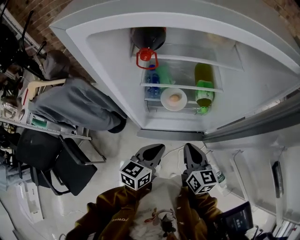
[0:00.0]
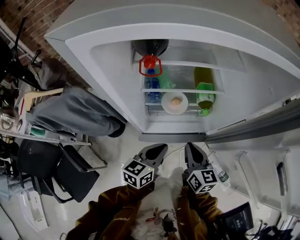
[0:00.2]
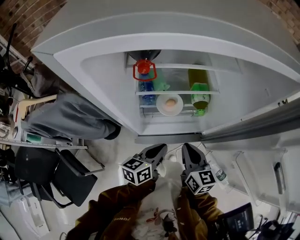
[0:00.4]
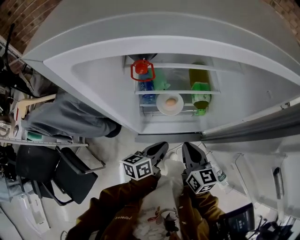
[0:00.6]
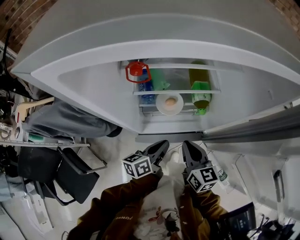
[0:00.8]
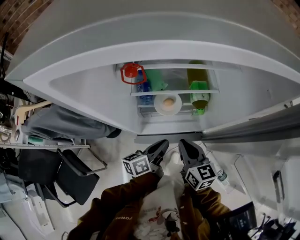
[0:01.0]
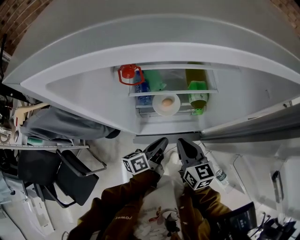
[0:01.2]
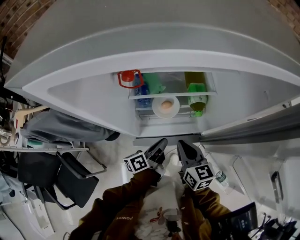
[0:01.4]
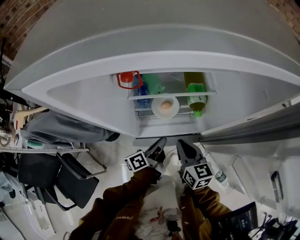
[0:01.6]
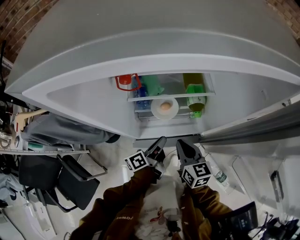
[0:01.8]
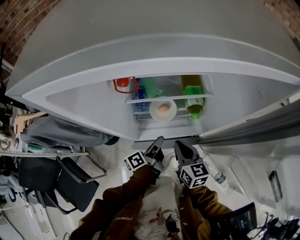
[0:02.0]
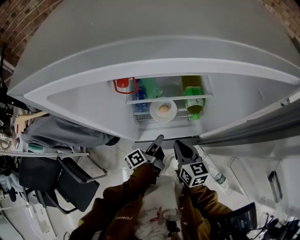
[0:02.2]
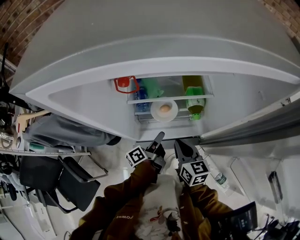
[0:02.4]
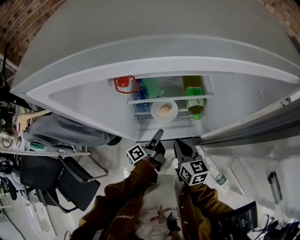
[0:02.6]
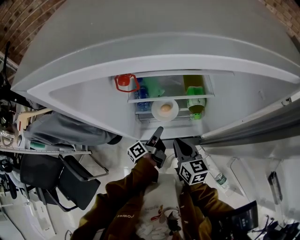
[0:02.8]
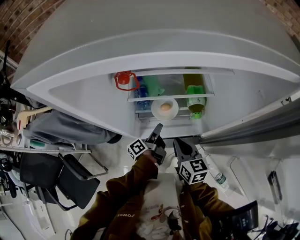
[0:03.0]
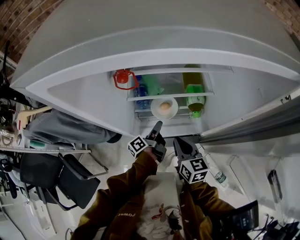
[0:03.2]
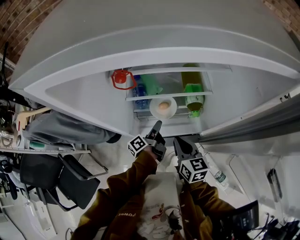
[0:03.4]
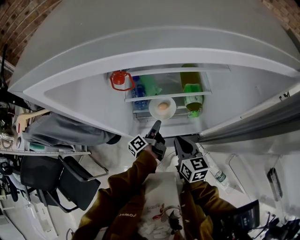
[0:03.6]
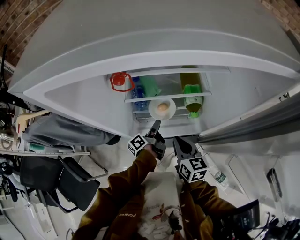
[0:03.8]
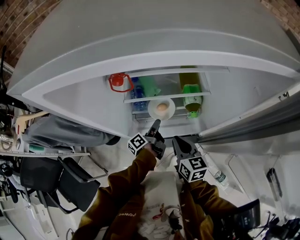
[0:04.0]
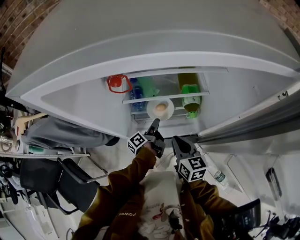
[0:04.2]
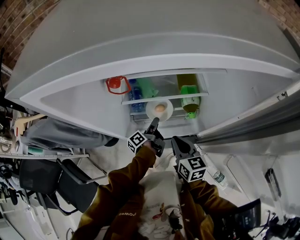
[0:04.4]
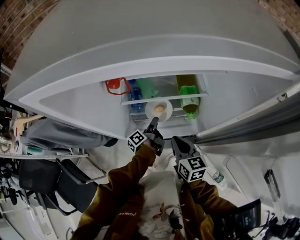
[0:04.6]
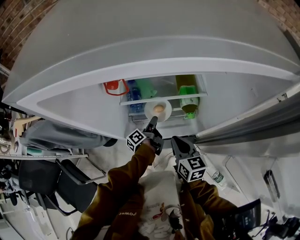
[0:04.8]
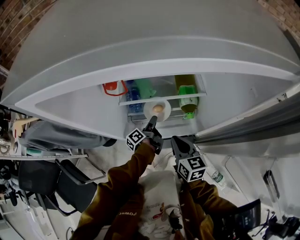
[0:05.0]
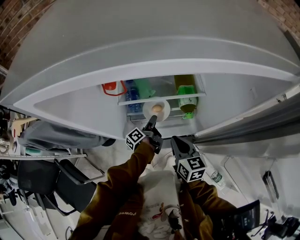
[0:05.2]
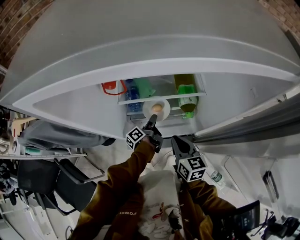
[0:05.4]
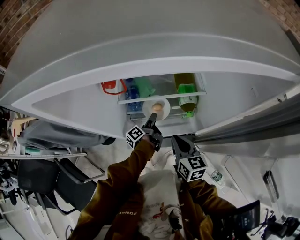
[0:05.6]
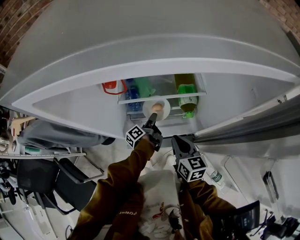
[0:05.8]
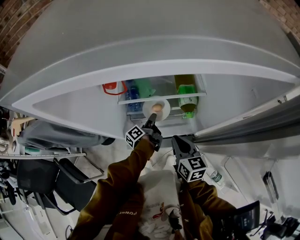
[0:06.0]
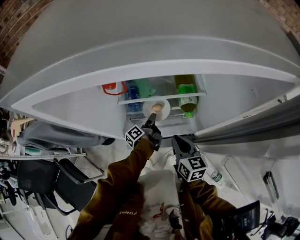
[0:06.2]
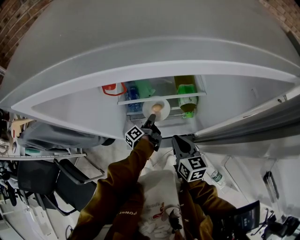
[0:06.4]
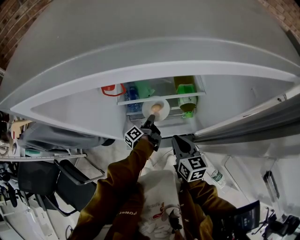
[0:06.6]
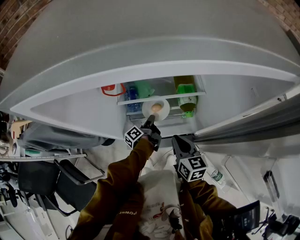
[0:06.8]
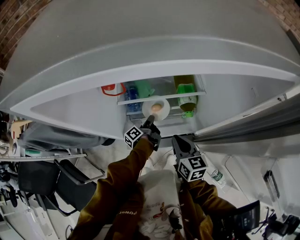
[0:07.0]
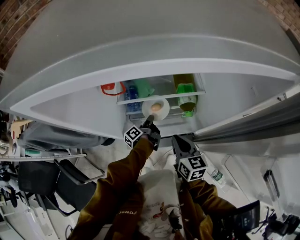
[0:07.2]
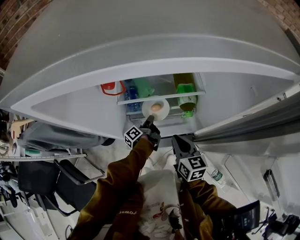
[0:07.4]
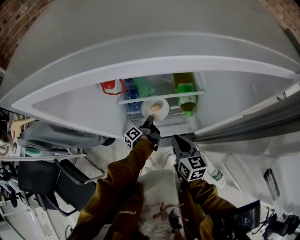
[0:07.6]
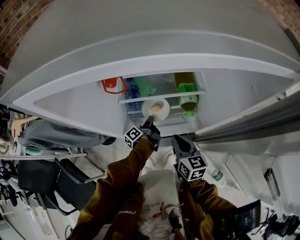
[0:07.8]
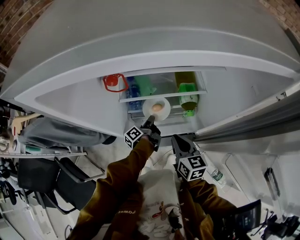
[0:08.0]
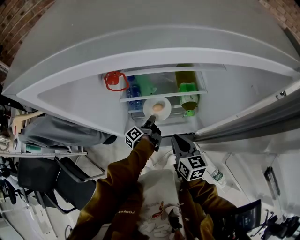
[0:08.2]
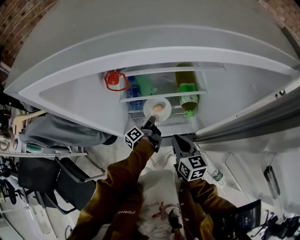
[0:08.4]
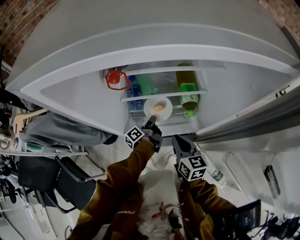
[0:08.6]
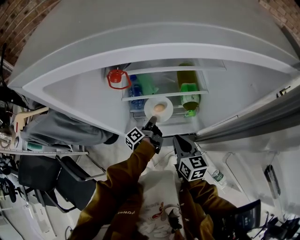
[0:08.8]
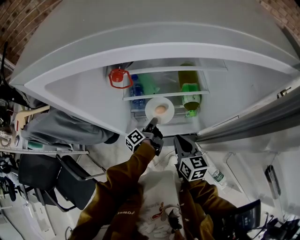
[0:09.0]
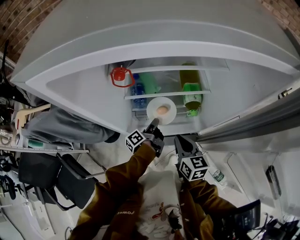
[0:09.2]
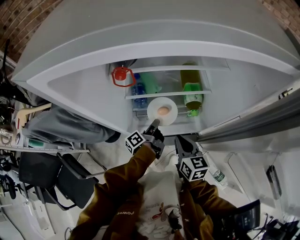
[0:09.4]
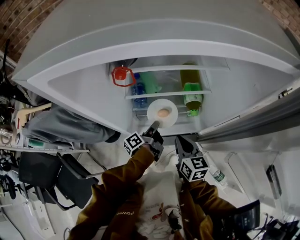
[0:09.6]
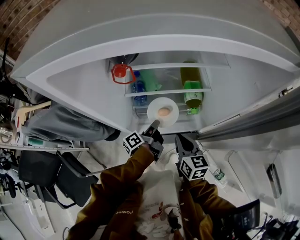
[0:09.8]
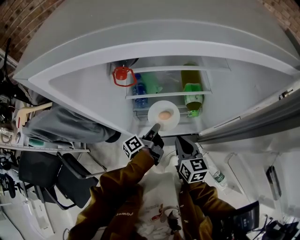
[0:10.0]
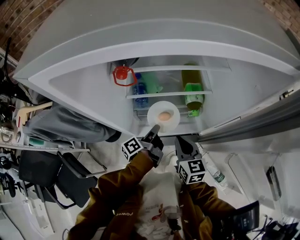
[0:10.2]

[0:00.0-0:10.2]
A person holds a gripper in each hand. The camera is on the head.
0:00.0 to 0:01.4: The right gripper moves about 5 cm.

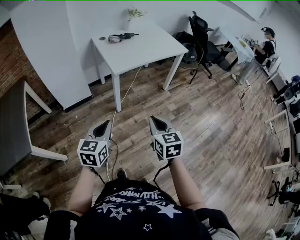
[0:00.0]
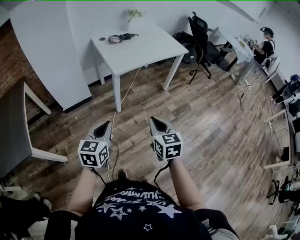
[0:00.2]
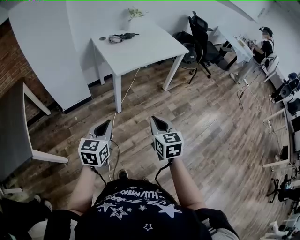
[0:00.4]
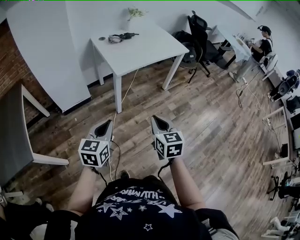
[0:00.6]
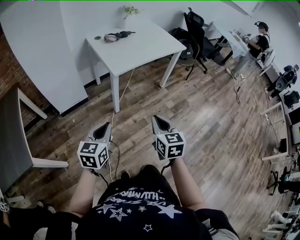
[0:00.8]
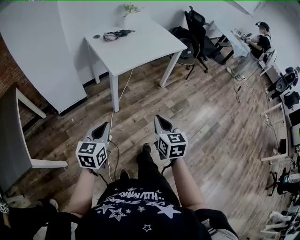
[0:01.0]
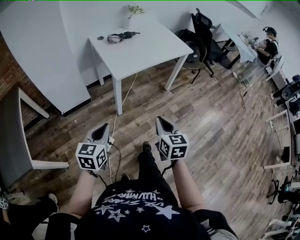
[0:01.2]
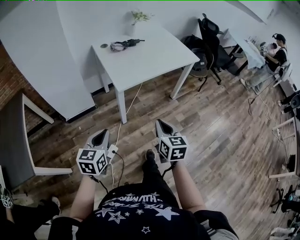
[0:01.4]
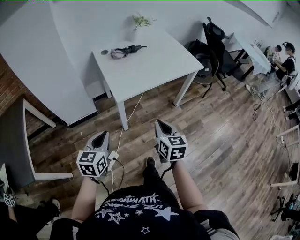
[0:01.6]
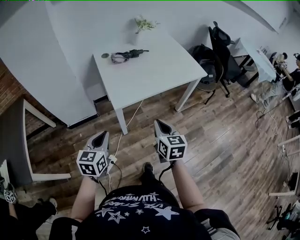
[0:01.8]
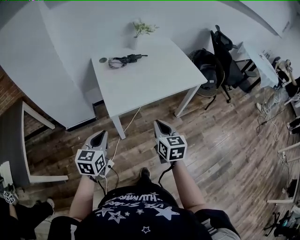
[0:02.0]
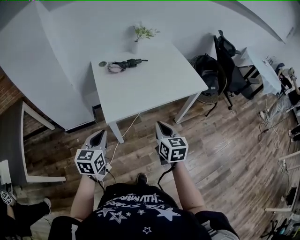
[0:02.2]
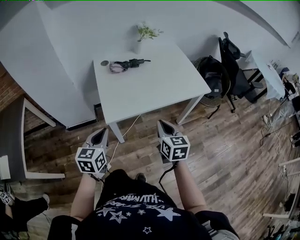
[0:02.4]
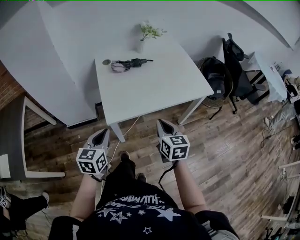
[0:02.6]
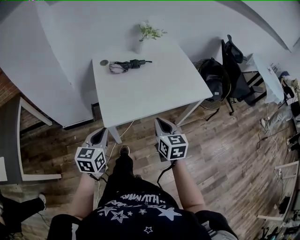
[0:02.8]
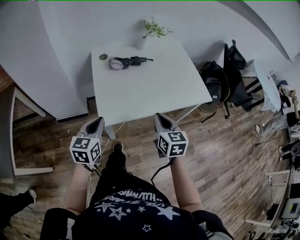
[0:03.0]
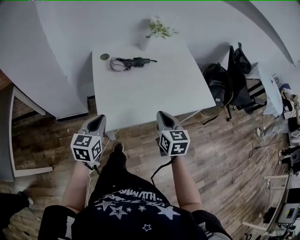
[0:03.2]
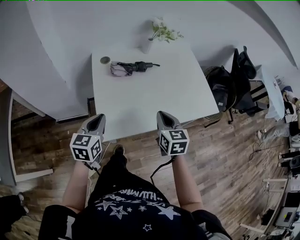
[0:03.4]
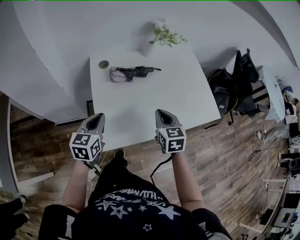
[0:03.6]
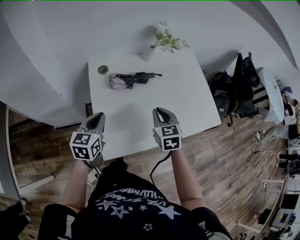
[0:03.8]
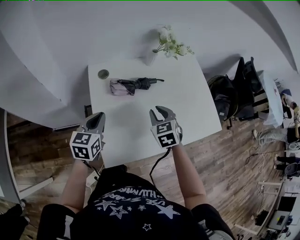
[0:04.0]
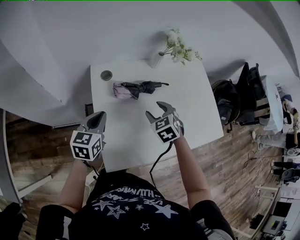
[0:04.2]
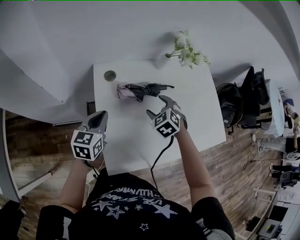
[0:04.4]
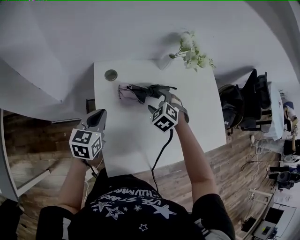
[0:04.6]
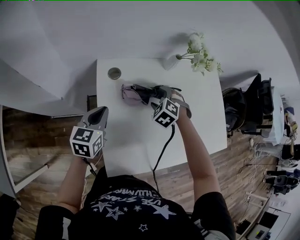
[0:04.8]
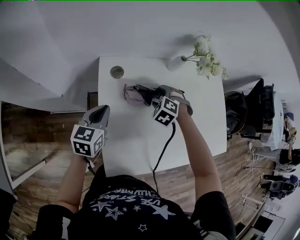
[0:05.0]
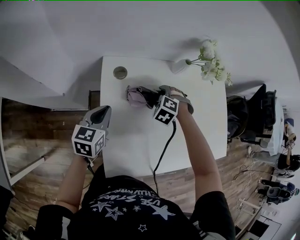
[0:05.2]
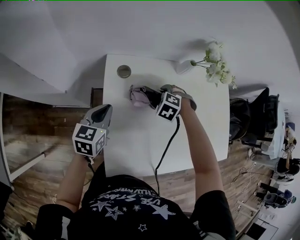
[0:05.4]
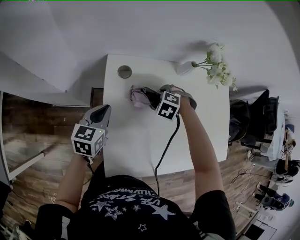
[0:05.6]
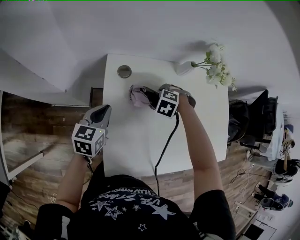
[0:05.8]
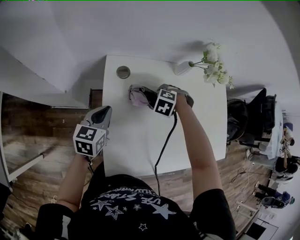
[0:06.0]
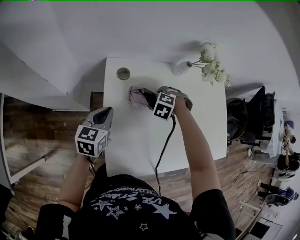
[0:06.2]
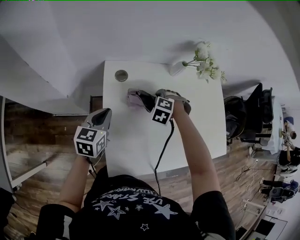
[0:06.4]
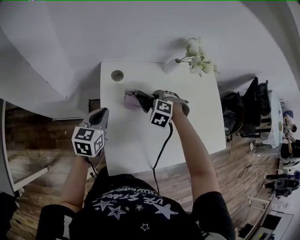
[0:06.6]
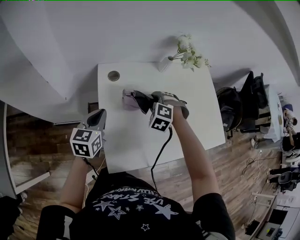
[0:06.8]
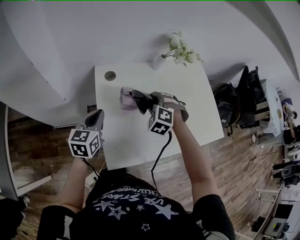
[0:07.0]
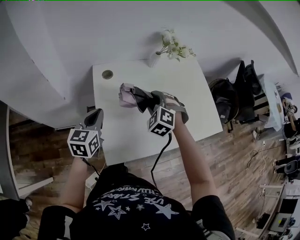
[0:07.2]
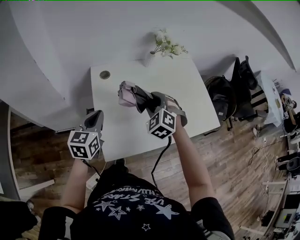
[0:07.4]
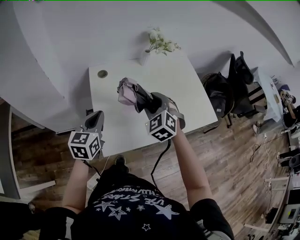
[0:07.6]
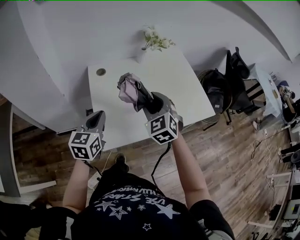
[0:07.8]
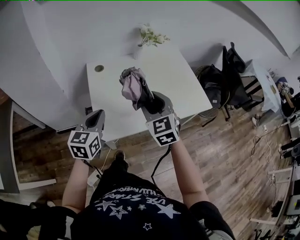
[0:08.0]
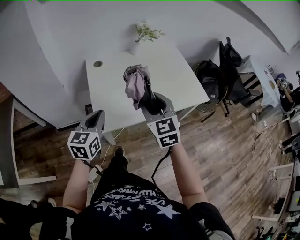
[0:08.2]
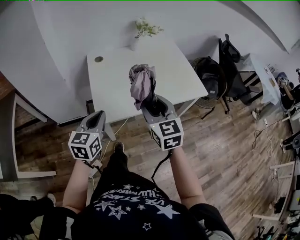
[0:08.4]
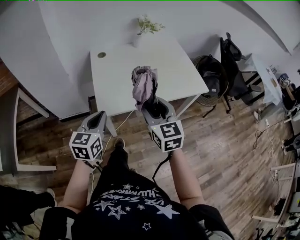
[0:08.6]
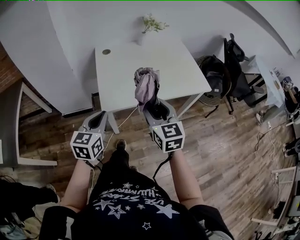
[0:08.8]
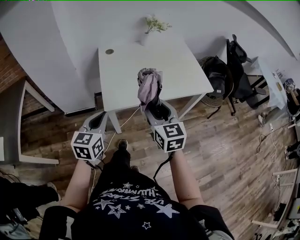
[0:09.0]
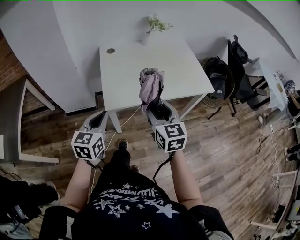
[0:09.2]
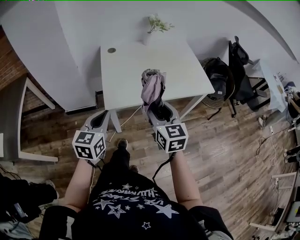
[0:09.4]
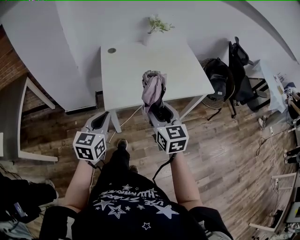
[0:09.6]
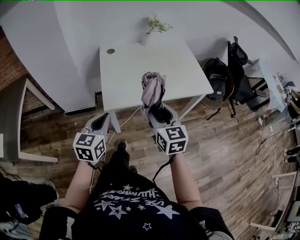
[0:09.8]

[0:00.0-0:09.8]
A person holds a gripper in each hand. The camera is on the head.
0:00.0 to 0:01.4: The two grippers go some 15 cm forward.
0:01.4 to 0:02.8: The right gripper is displaced forward by about 30 cm. Meanwhile the left gripper shifts approximately 25 cm forward and to the right.
0:02.8 to 0:04.2: Both grippers travel together forward, approximately 35 cm. The right gripper rotates some 40 degrees, and opens up.
0:04.2 to 0:05.6: The left gripper shifts by approximately 10 cm. The right gripper changes place by some 15 cm, and rotates around the line of its fingers by approximately 40 degrees, counterclockwise from behind.
0:05.6 to 0:07.0: The right gripper heads upward, covering approximately 10 cm, and swivels about 30 degrees, while the left gripper moves some 10 cm.
0:07.0 to 0:08.4: The right gripper heads backward and upward, covering roughly 35 cm, and rotates around the line of its fingers by about 60 degrees, clockwise from behind. The left gripper shifts roughly 30 cm backward and to the right.
0:08.4 to 0:09.8: Both grippers travel together backward, approximately 10 cm.

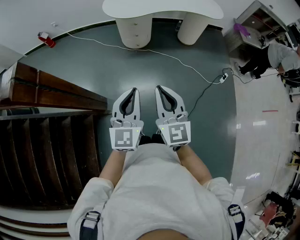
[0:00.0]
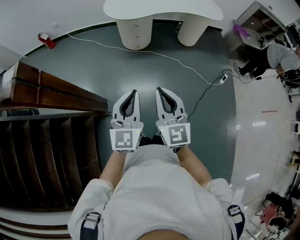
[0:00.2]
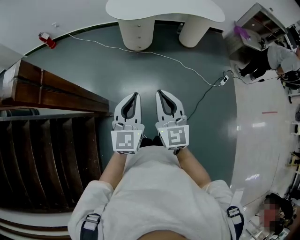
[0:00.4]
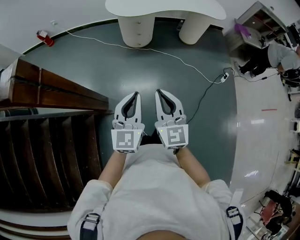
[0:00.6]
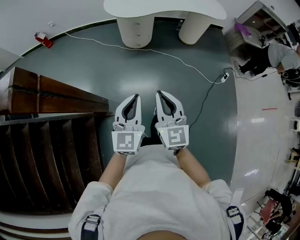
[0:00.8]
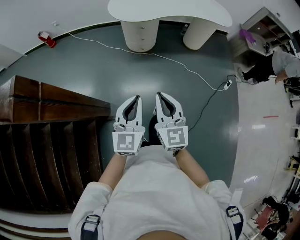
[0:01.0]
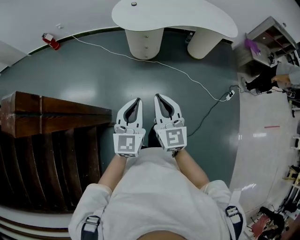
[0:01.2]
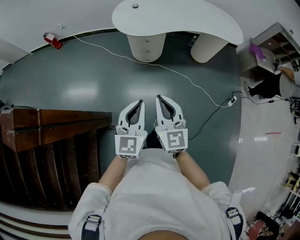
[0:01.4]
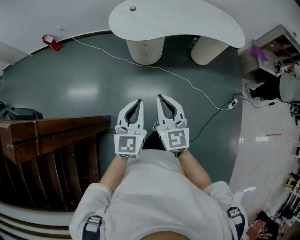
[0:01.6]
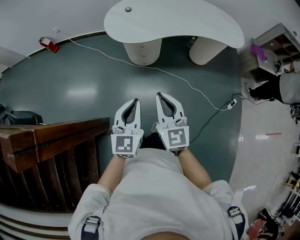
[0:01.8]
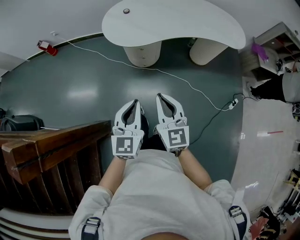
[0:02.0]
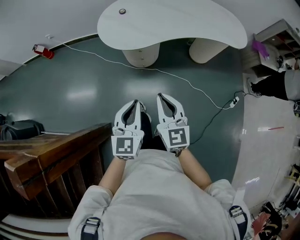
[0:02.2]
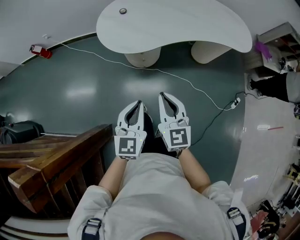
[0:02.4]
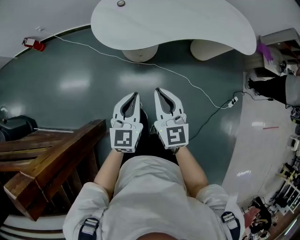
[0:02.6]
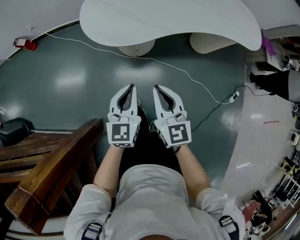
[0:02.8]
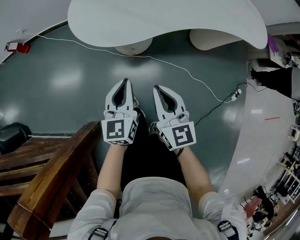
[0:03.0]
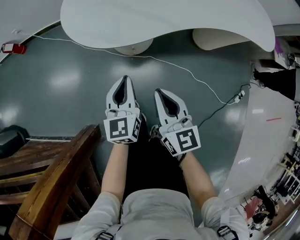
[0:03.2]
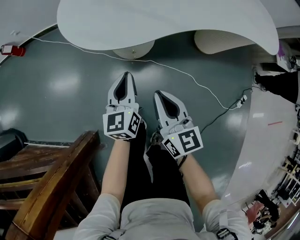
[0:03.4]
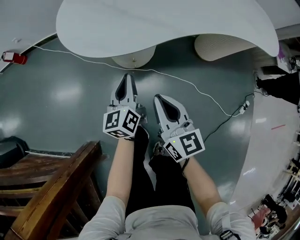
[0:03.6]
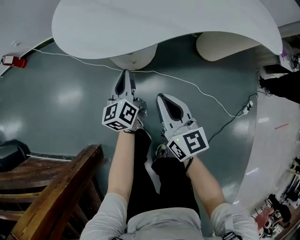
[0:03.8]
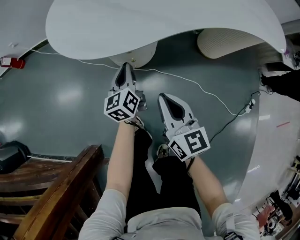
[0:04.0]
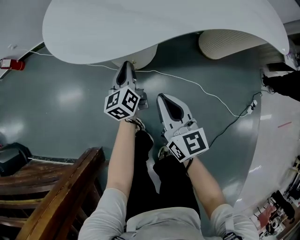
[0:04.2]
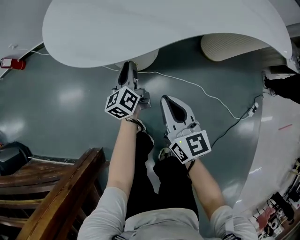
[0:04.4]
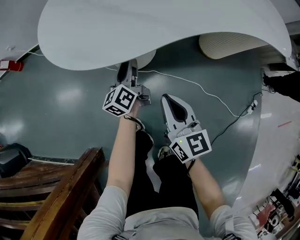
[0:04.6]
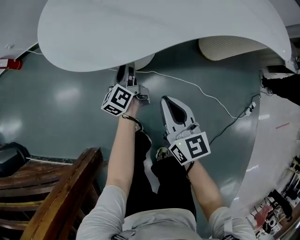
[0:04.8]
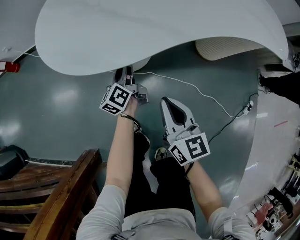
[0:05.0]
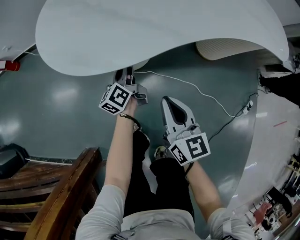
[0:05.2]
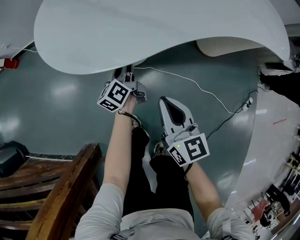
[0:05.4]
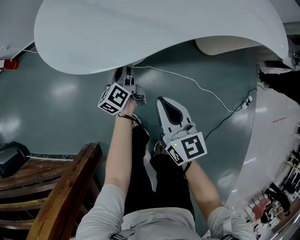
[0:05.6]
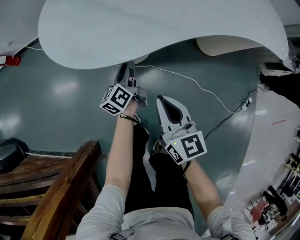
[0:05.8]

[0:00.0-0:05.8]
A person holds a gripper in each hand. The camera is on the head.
0:00.0 to 0:01.4: The two grippers go approximately 20 cm forward.
0:01.4 to 0:02.8: The grippers both shift forward and downward by about 35 cm.
0:02.8 to 0:04.4: The right gripper heads downward, covering some 25 cm. The left gripper heads downward and forward, covering approximately 40 cm, and turns by some 40 degrees.
0:04.4 to 0:05.8: The grippers make only small movements.
